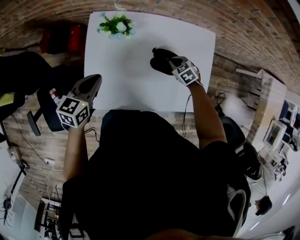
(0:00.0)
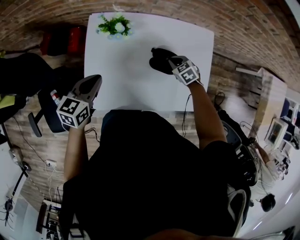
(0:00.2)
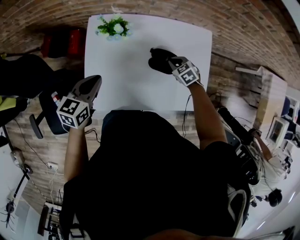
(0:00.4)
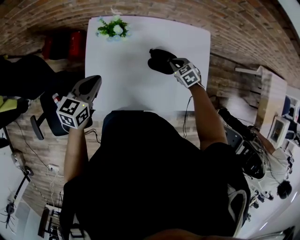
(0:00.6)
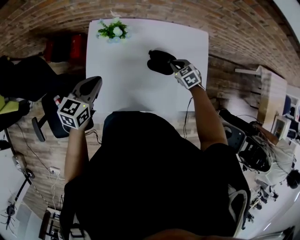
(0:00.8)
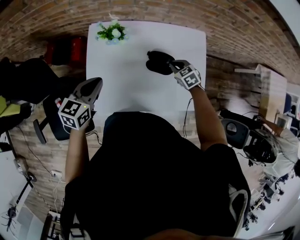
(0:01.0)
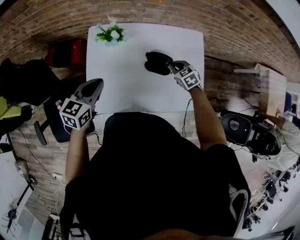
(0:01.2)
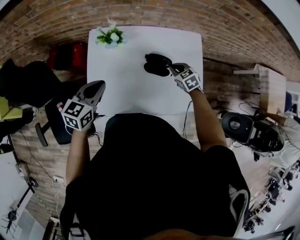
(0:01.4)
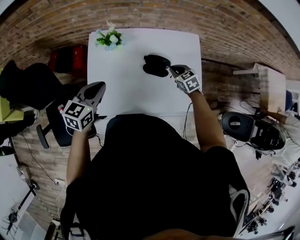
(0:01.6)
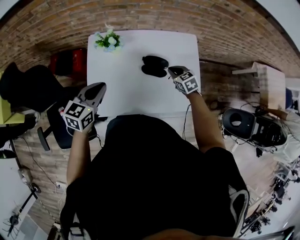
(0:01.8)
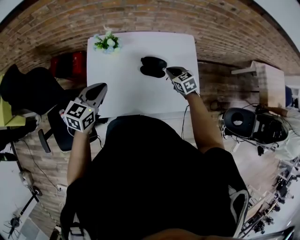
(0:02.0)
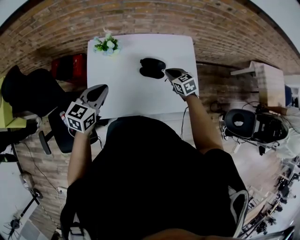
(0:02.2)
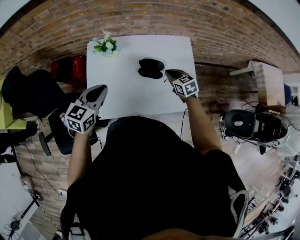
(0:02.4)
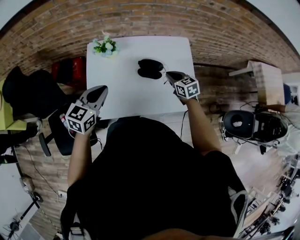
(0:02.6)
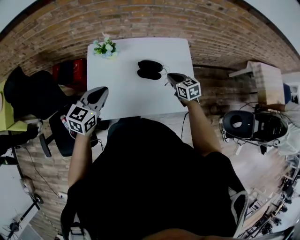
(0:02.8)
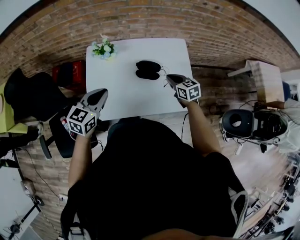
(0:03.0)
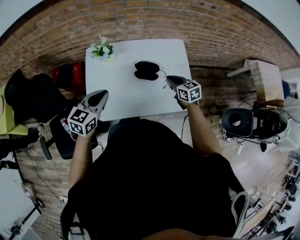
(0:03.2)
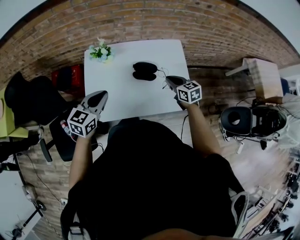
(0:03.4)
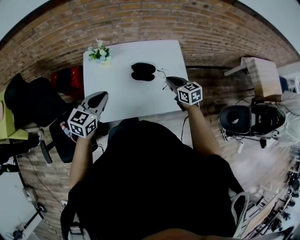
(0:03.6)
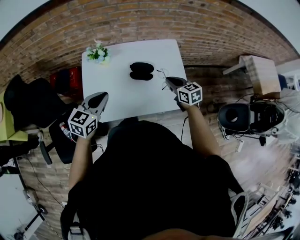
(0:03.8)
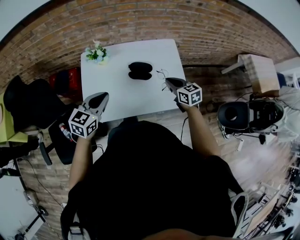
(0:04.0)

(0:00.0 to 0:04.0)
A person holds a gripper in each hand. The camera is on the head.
0:00.0 - 0:01.4: Both grippers travel together upward, some 10 cm.
0:01.4 - 0:02.6: The right gripper is displaced upward and backward by some 10 cm, and changes its angle by about 20 degrees. Meanwhile the left gripper changes place by approximately 10 cm.
0:02.6 - 0:04.0: The right gripper shifts some 10 cm backward and upward. The left gripper moves backward, about 5 cm.

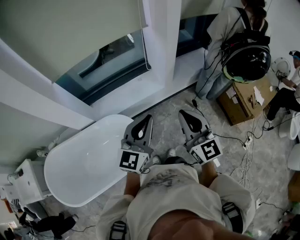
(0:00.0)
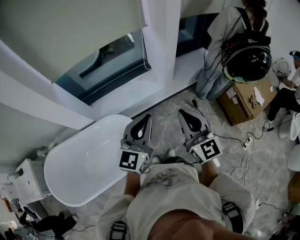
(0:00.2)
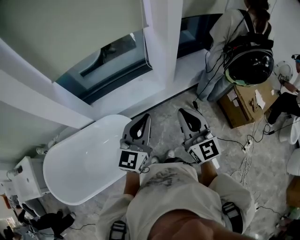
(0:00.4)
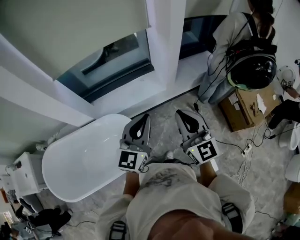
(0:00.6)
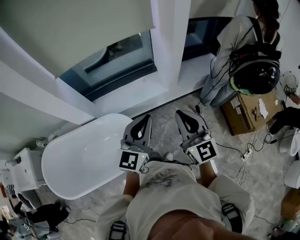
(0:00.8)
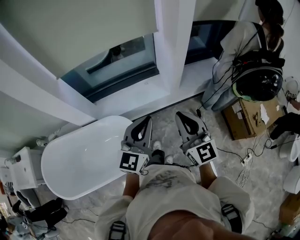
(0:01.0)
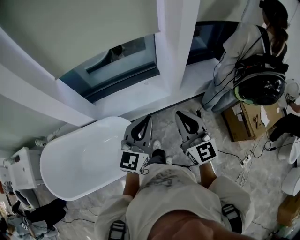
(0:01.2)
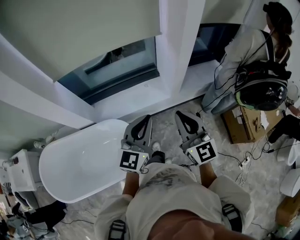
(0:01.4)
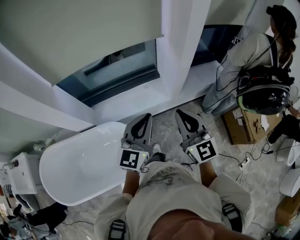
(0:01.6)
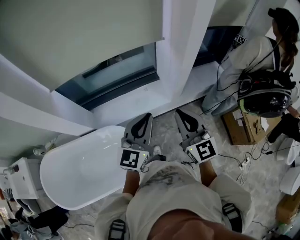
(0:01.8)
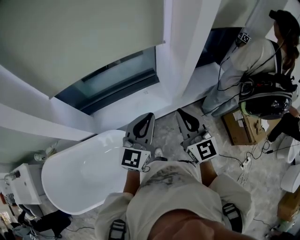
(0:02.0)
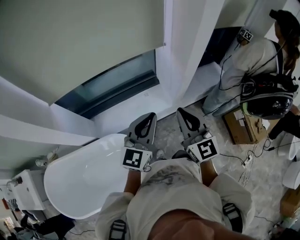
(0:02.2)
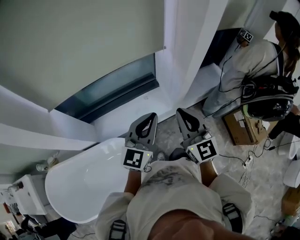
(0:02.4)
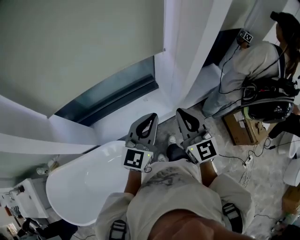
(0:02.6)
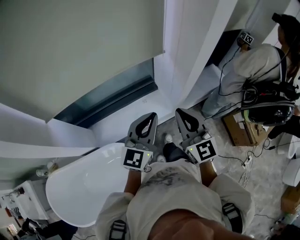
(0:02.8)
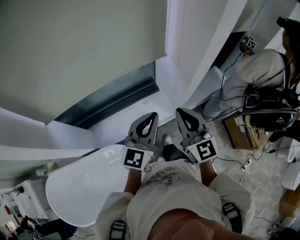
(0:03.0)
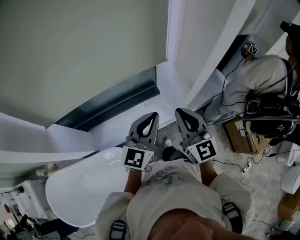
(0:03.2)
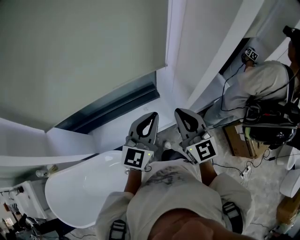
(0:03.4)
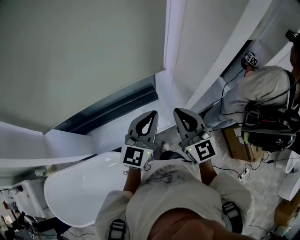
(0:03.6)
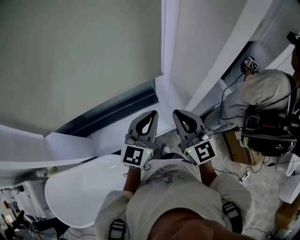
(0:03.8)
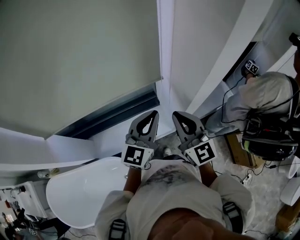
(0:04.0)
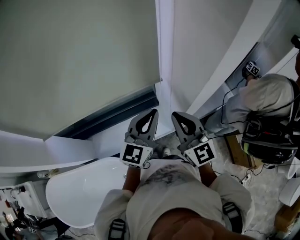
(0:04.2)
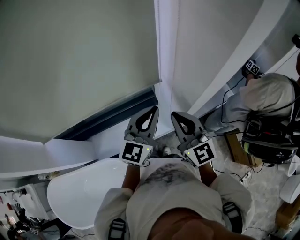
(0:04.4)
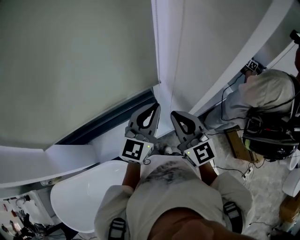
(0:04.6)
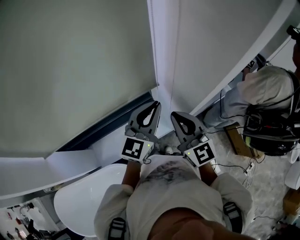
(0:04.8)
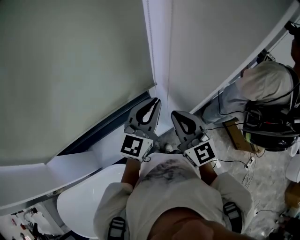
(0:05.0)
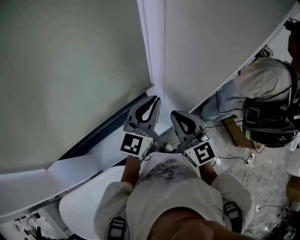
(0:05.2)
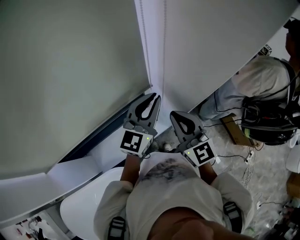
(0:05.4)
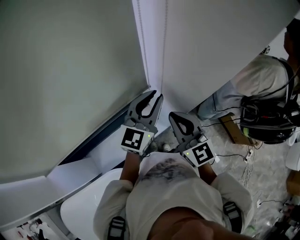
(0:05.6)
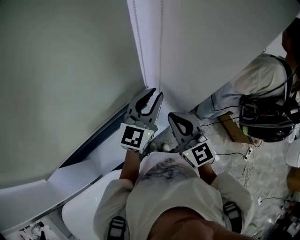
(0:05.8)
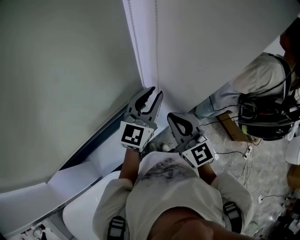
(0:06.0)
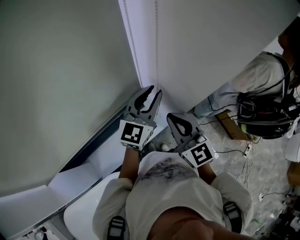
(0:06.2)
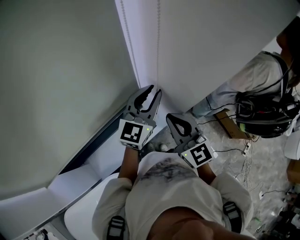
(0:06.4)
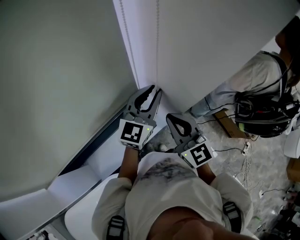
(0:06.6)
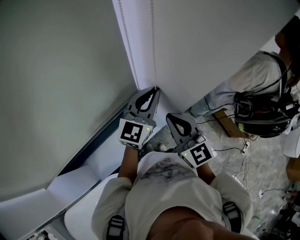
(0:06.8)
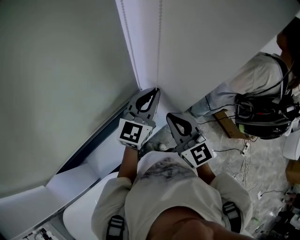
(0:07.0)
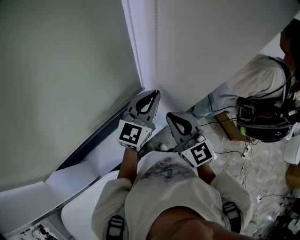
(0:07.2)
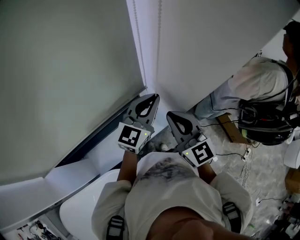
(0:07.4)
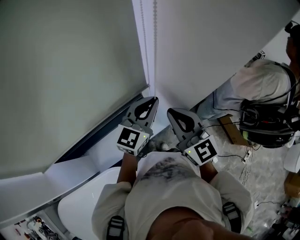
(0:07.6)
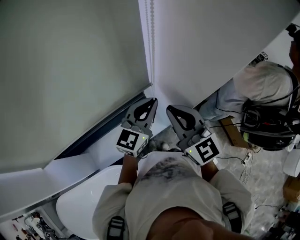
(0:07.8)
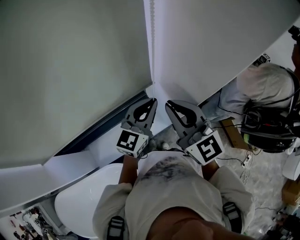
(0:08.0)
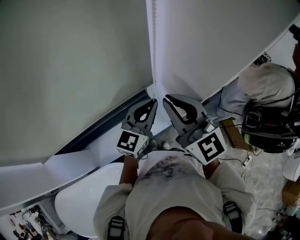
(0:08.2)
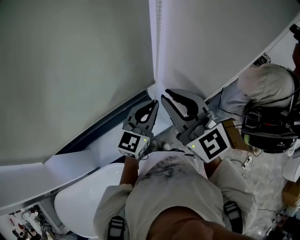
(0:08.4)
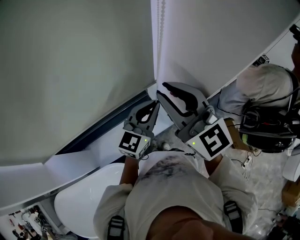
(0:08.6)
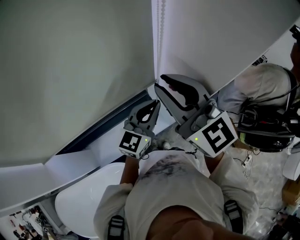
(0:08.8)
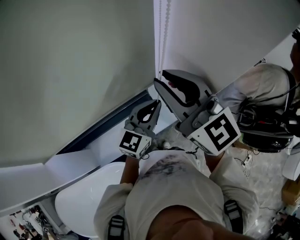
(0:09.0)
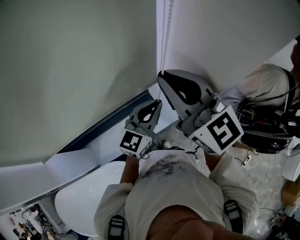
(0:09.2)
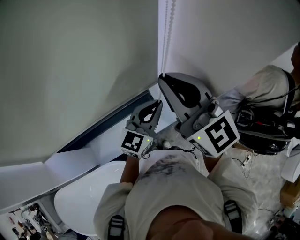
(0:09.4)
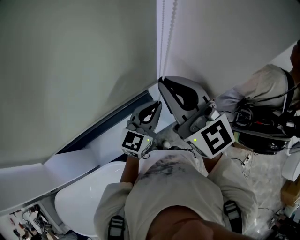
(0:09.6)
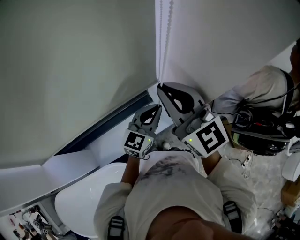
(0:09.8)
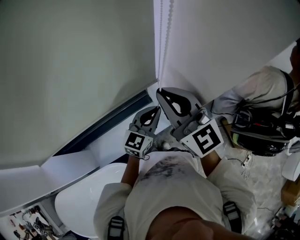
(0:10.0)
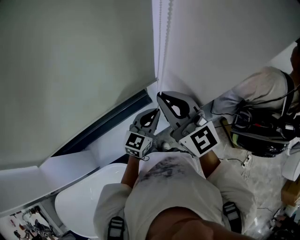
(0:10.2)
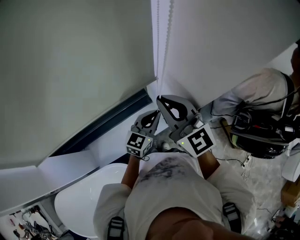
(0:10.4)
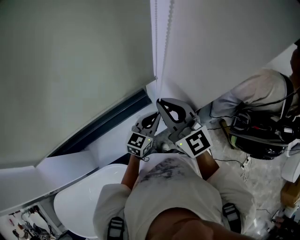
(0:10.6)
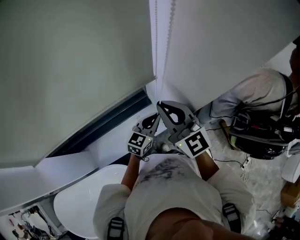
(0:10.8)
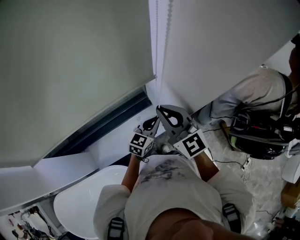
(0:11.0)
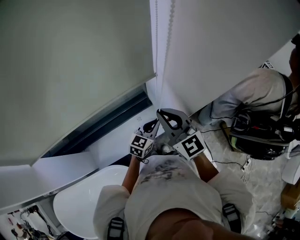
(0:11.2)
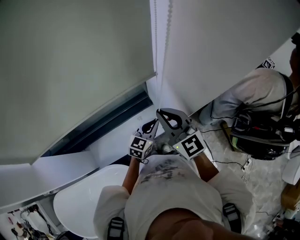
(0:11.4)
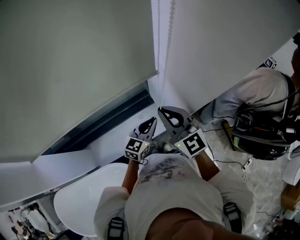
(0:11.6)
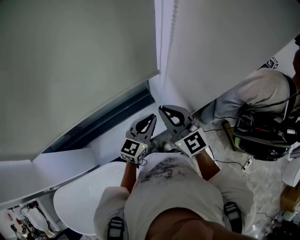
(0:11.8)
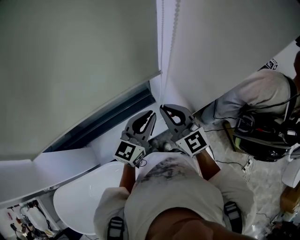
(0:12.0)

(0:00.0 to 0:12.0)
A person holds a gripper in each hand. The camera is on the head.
0:00.0 - 0:01.6: The grippers both shift forward by roughly 15 cm.
0:01.6 - 0:03.0: Both grippers travel together forward, roughly 15 cm.
0:03.0 - 0:04.4: The grippers both shift forward by approximately 15 cm.
0:04.4 - 0:06.0: The left gripper travels forward by approximately 10 cm.
0:06.0 - 0:07.6: The left gripper moves some 5 cm.
0:07.6 - 0:09.0: The right gripper moves upward and to the left, some 15 cm.
0:09.0 - 0:10.4: The two grippers go some 10 cm downward.
0:10.4 - 0:12.0: The right gripper goes roughly 10 cm downward. The left gripper heads upward, covering some 10 cm.

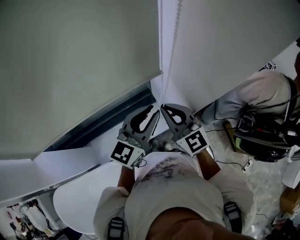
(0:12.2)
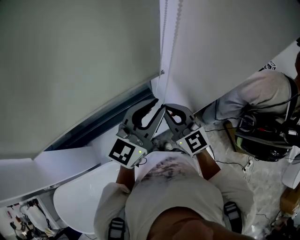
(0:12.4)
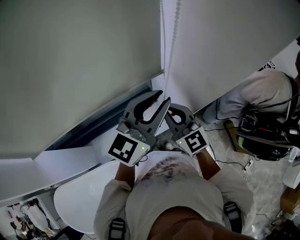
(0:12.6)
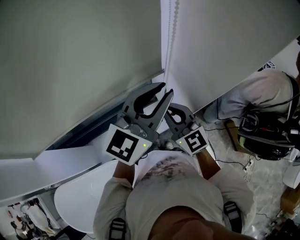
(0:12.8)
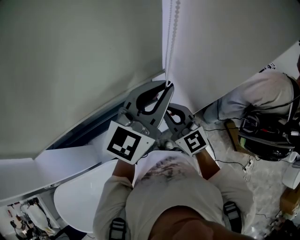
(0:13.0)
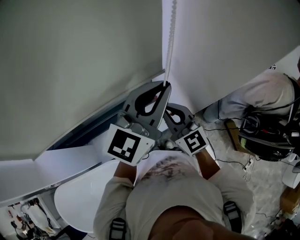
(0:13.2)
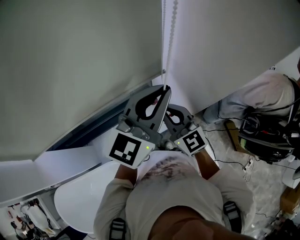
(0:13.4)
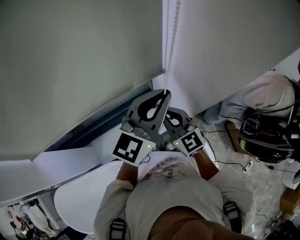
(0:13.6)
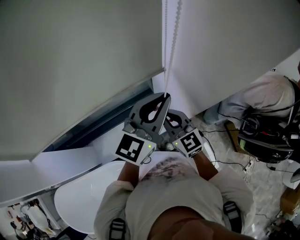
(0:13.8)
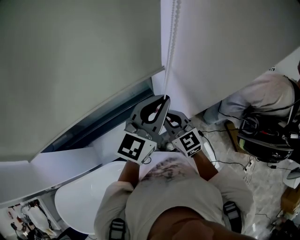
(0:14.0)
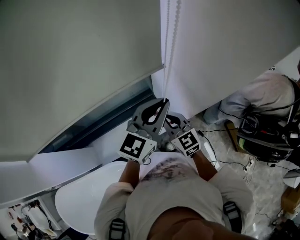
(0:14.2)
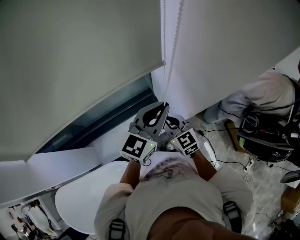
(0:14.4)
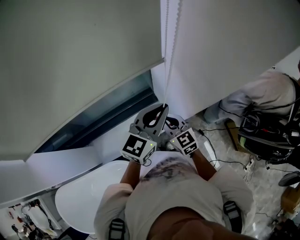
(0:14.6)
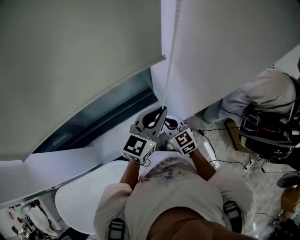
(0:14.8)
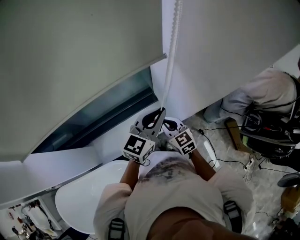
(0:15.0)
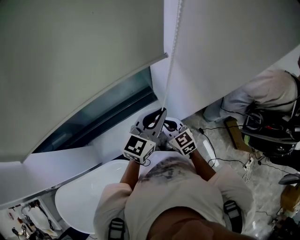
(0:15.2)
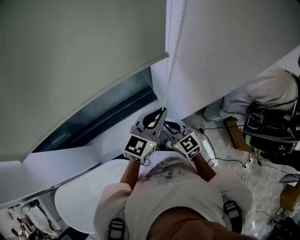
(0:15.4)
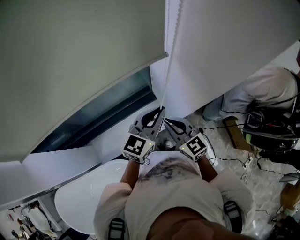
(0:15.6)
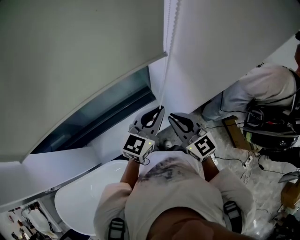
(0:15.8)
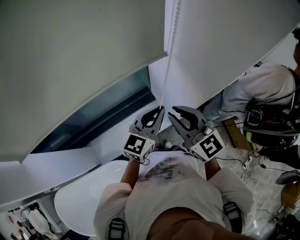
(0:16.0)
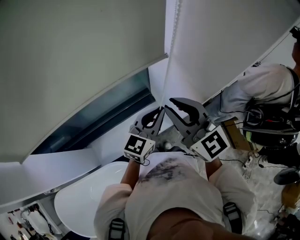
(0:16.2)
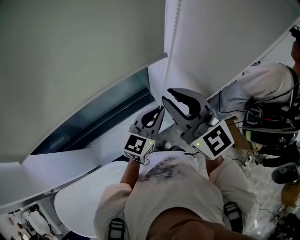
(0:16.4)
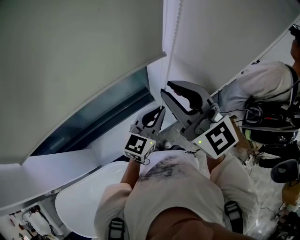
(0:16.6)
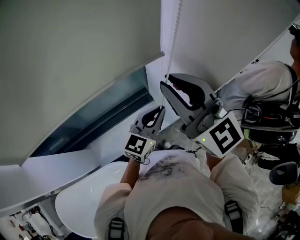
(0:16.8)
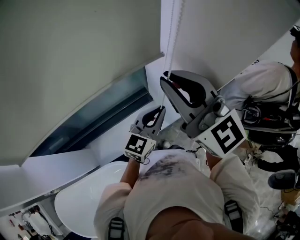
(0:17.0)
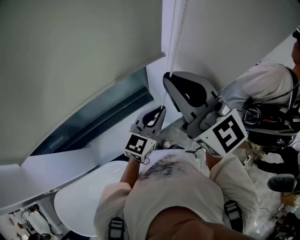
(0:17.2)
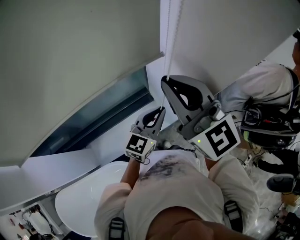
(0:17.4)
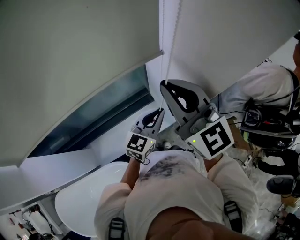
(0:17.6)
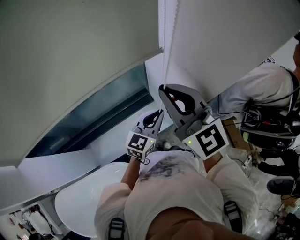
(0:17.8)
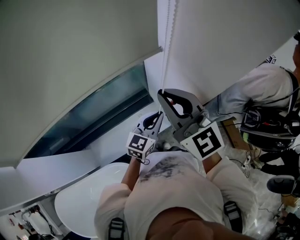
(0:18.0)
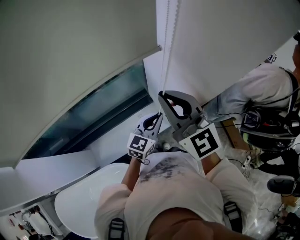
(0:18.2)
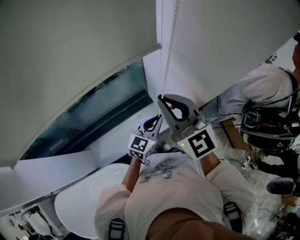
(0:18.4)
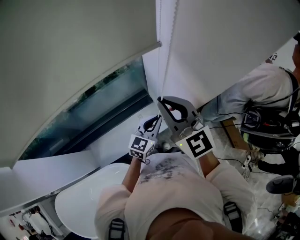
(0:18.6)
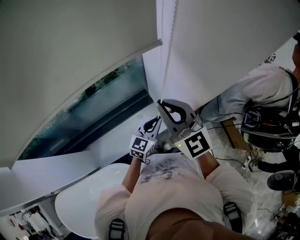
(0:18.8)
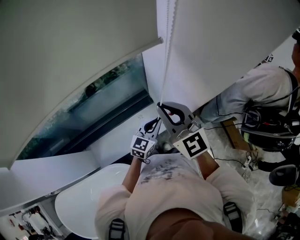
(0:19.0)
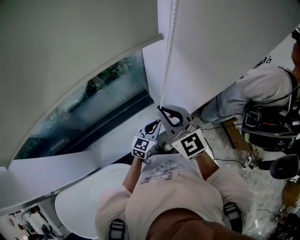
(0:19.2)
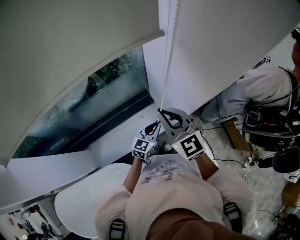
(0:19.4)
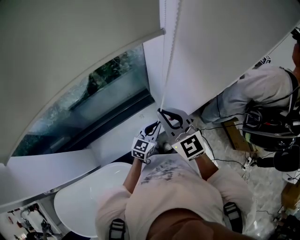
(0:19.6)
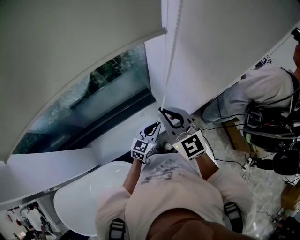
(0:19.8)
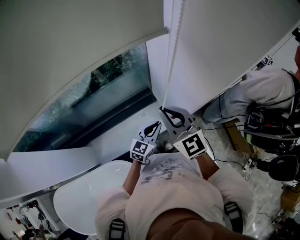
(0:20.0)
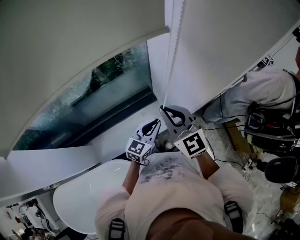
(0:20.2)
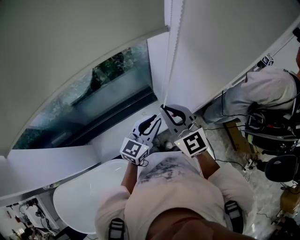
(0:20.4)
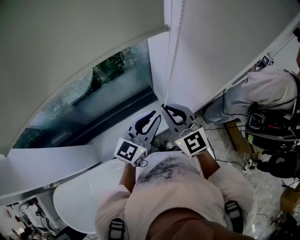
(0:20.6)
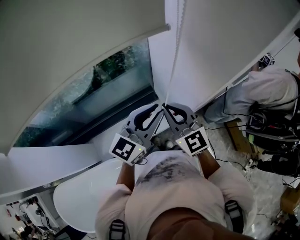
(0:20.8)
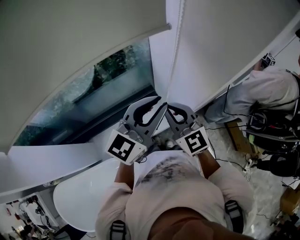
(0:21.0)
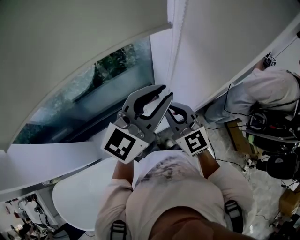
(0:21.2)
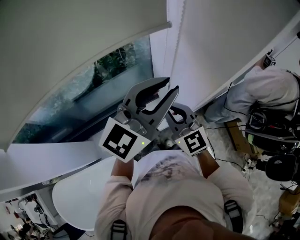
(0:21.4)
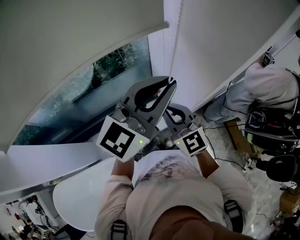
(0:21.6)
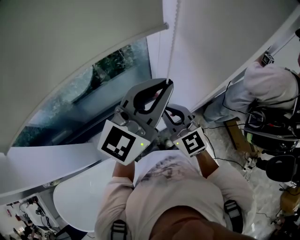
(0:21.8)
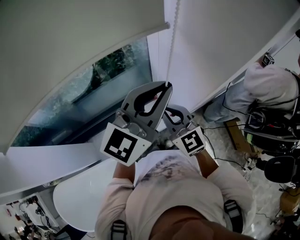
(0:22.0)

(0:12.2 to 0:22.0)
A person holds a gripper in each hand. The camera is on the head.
0:12.2 - 0:13.6: The left gripper goes approximately 10 cm upward.
0:13.6 - 0:15.0: The two grippers go roughly 15 cm downward.
0:15.0 - 0:16.4: The right gripper goes roughly 30 cm upward, and rotates roughly 30 degrees.
0:16.4 - 0:17.8: The left gripper shifts about 5 cm downward.
0:17.8 - 0:19.2: Both grippers move downward, approximately 10 cm.
0:19.2 - 0:20.6: The left gripper moves upward, roughly 15 cm.
0:20.6 - 0:22.0: The left gripper goes roughly 20 cm upward.
